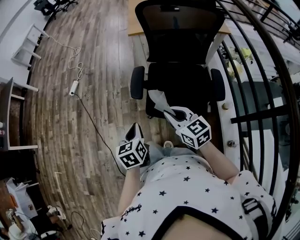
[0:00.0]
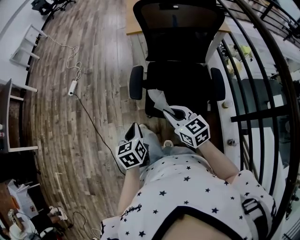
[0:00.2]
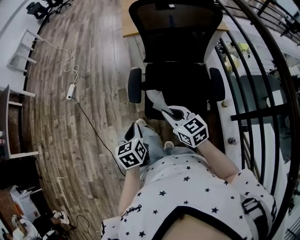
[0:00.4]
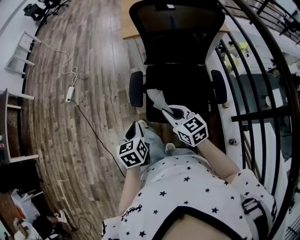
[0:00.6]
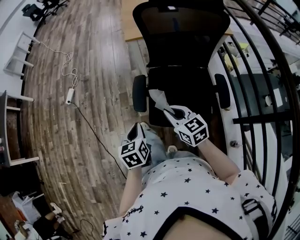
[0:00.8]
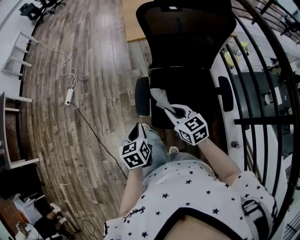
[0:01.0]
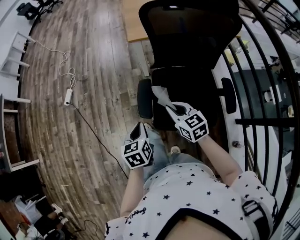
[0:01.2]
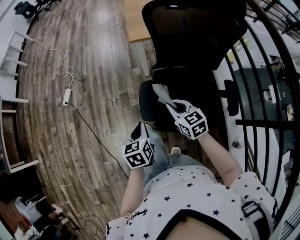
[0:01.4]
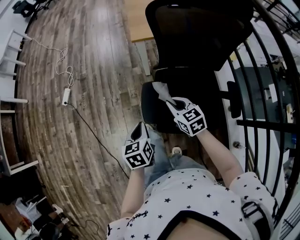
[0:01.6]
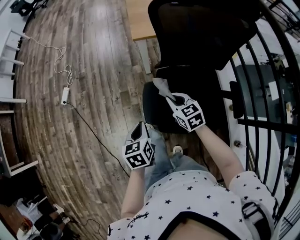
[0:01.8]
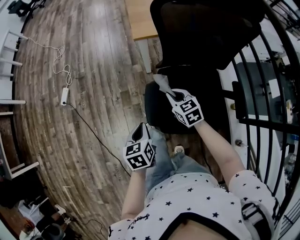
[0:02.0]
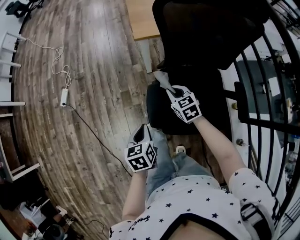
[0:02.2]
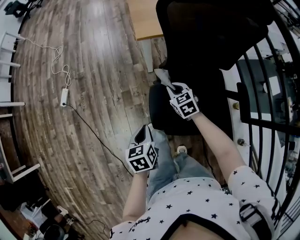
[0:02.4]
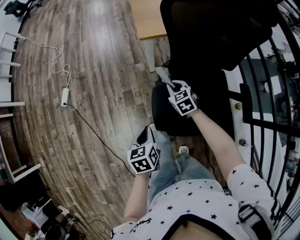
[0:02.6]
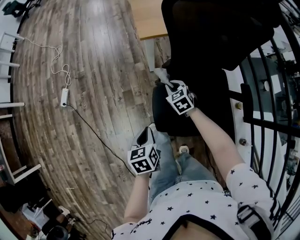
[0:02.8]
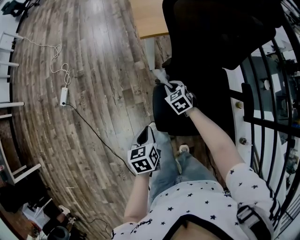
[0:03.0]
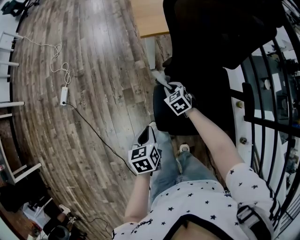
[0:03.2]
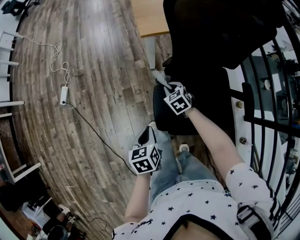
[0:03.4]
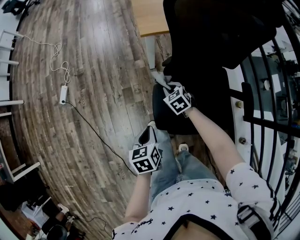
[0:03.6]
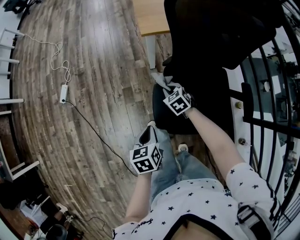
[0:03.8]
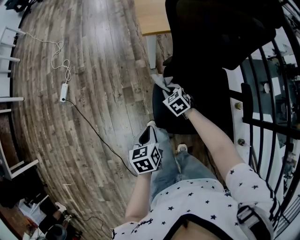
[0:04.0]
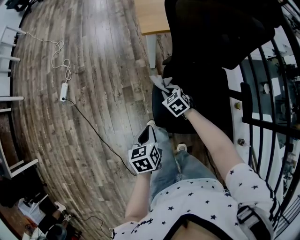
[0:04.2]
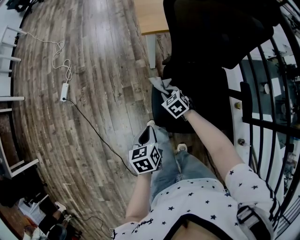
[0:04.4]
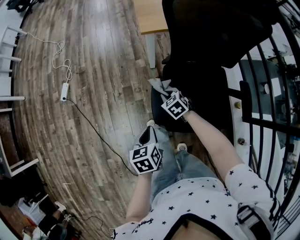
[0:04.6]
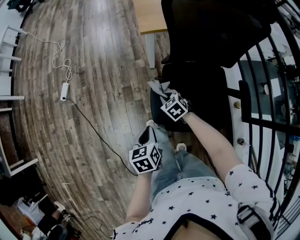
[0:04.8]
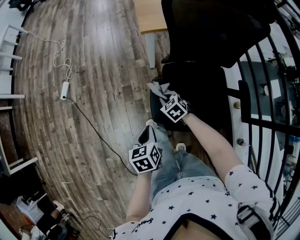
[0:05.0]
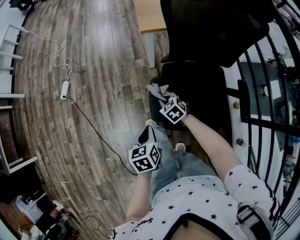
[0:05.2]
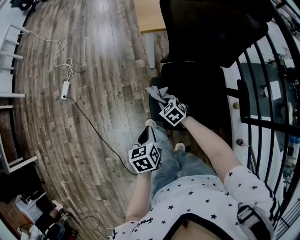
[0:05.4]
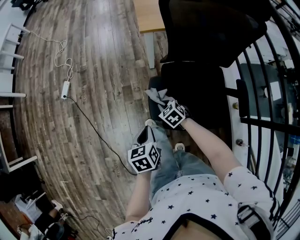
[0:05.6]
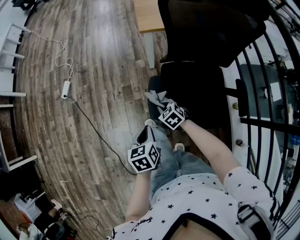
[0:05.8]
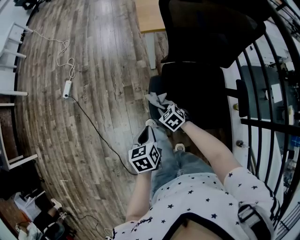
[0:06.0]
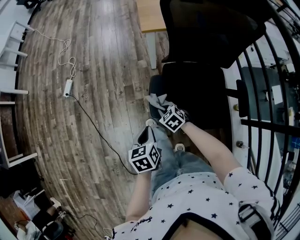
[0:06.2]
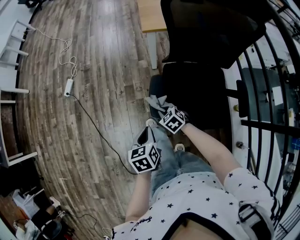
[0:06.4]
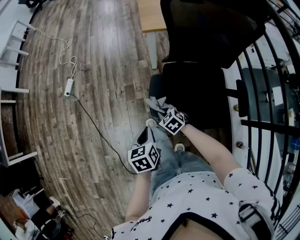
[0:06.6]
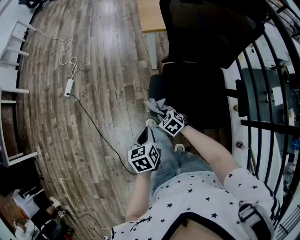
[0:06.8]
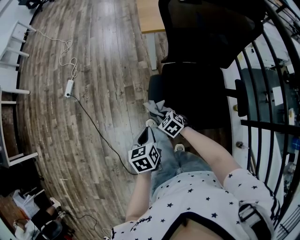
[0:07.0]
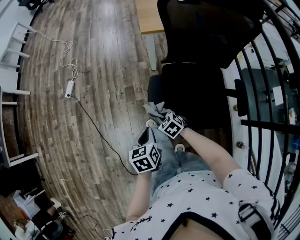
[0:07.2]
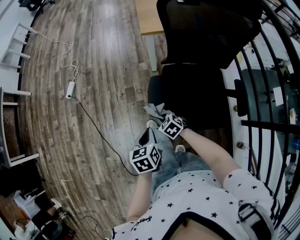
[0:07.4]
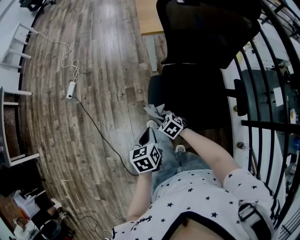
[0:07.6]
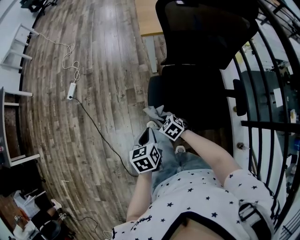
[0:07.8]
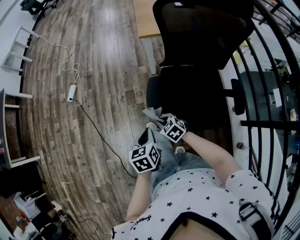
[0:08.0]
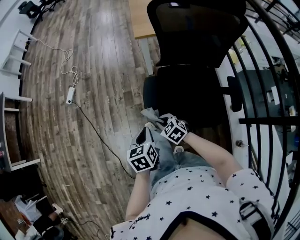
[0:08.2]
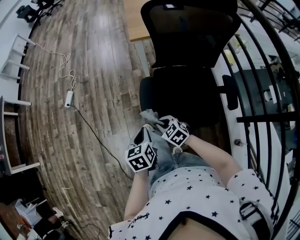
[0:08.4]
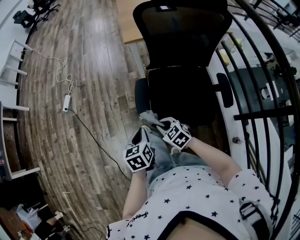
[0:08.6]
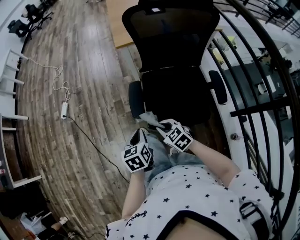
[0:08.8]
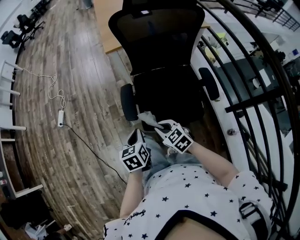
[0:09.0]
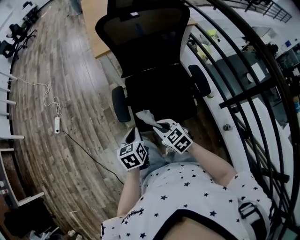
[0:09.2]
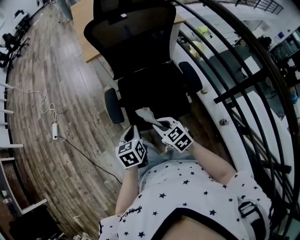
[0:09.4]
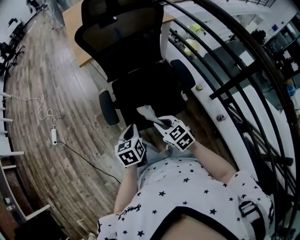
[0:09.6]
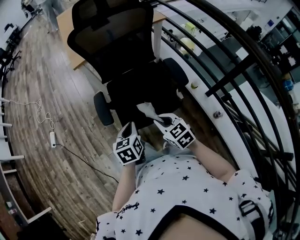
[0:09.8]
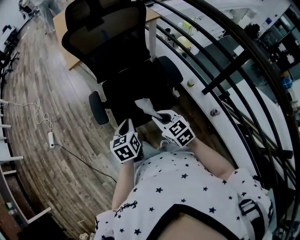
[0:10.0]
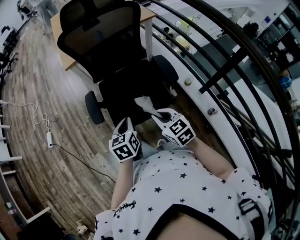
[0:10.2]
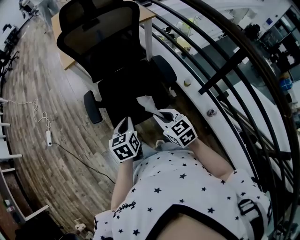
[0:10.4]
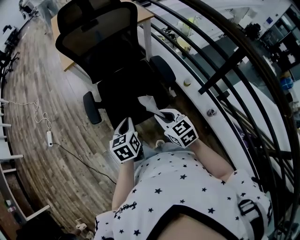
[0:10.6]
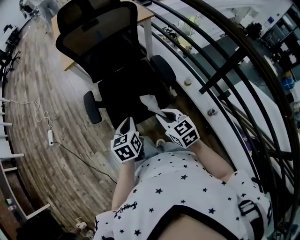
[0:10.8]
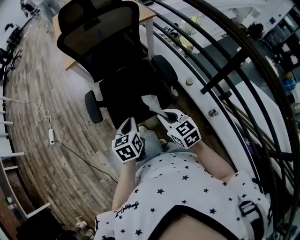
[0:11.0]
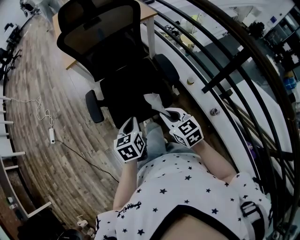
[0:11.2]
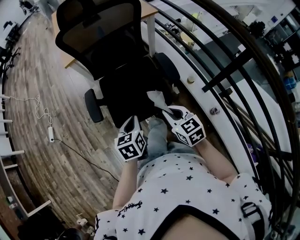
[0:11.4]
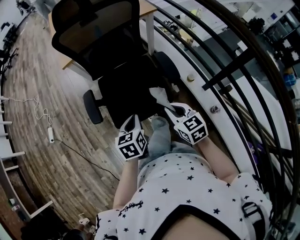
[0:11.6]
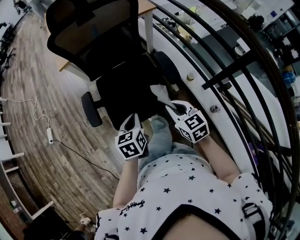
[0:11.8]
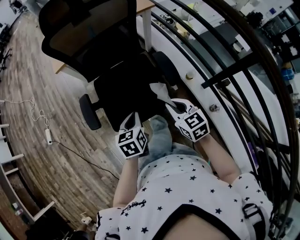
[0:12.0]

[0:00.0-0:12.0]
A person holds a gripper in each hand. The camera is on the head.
0:00.0 to 0:01.6: The right gripper heads forward and downward, covering roughly 25 cm. Meanwhile the left gripper heads forward, covering roughly 20 cm.
0:01.6 to 0:03.0: The left gripper moves downward, approximately 5 cm; the right gripper heads downward and forward, covering roughly 20 cm, and changes its angle by approximately 20 degrees.
0:03.0 to 0:04.4: The right gripper goes roughly 5 cm backward.
0:04.4 to 0:06.0: The right gripper travels backward by some 10 cm.
0:06.0 to 0:07.6: The right gripper travels backward by approximately 5 cm.
0:07.6 to 0:09.0: The right gripper shifts approximately 20 cm upward, backward and to the right, and turns by roughly 20 degrees. The left gripper heads backward and to the right, covering roughly 5 cm.
0:09.0 to 0:10.4: The right gripper heads to the right and backward, covering approximately 20 cm, and turns by approximately 20 degrees, while the left gripper moves to the right, some 20 cm.
0:10.4 to 0:12.0: Both grippers move to the right and forward, about 10 cm.

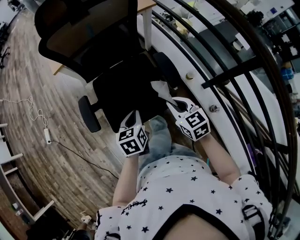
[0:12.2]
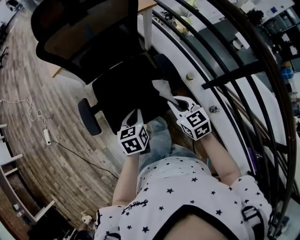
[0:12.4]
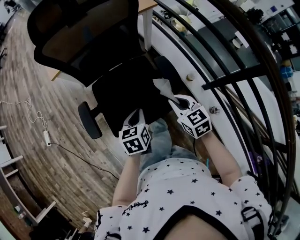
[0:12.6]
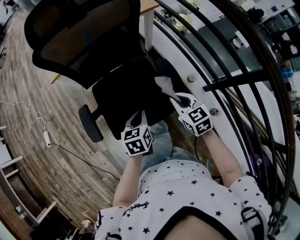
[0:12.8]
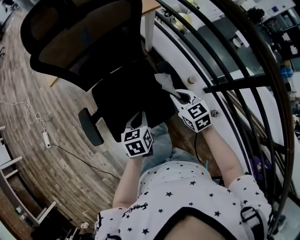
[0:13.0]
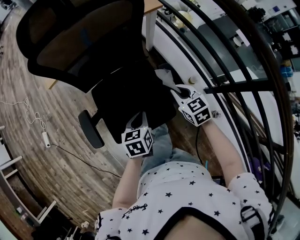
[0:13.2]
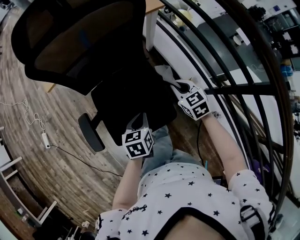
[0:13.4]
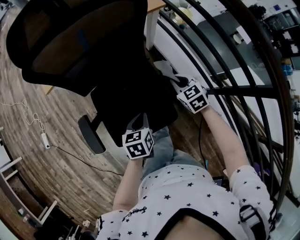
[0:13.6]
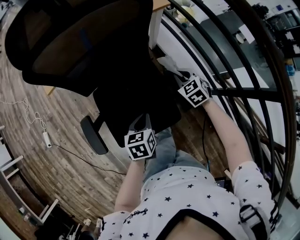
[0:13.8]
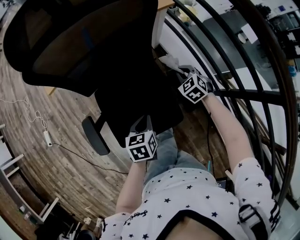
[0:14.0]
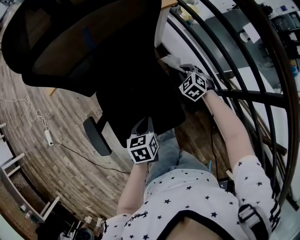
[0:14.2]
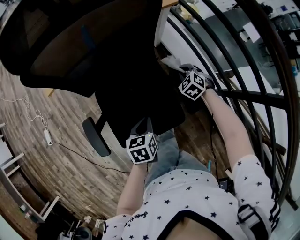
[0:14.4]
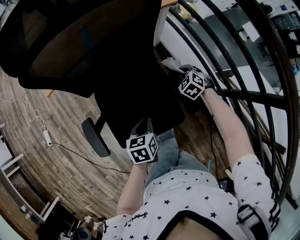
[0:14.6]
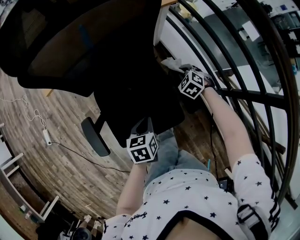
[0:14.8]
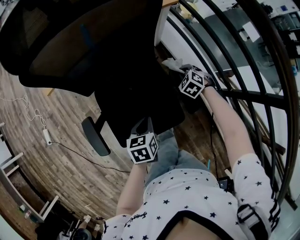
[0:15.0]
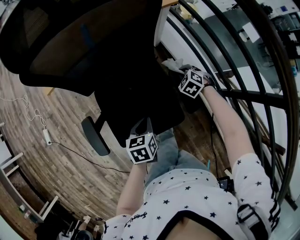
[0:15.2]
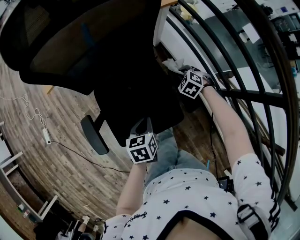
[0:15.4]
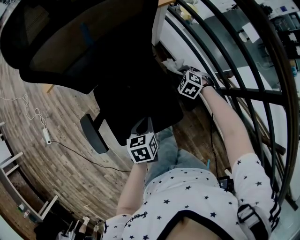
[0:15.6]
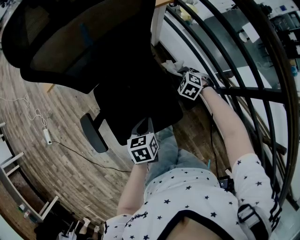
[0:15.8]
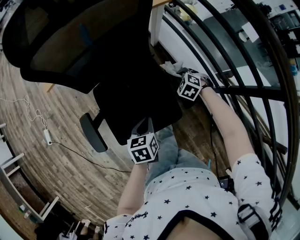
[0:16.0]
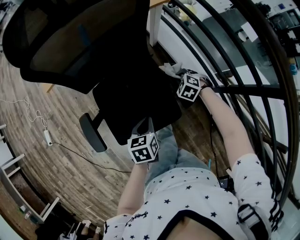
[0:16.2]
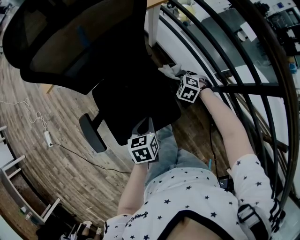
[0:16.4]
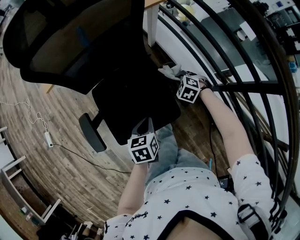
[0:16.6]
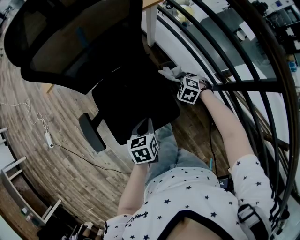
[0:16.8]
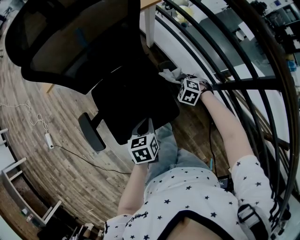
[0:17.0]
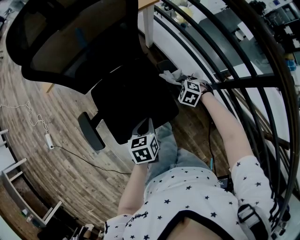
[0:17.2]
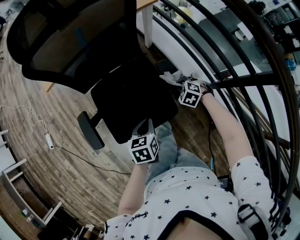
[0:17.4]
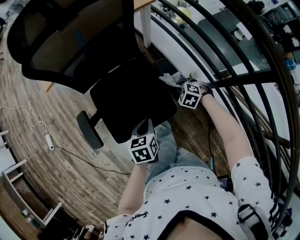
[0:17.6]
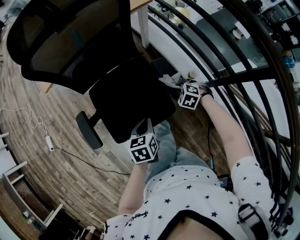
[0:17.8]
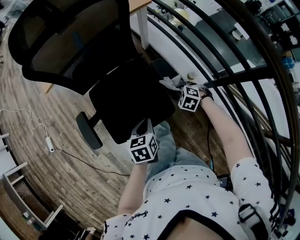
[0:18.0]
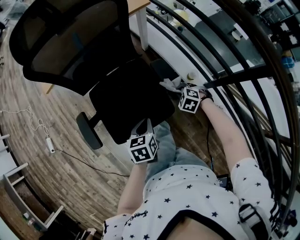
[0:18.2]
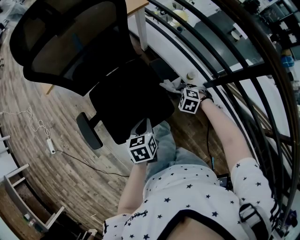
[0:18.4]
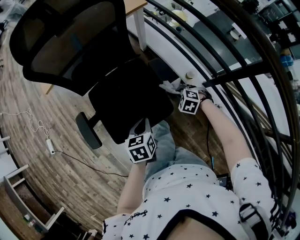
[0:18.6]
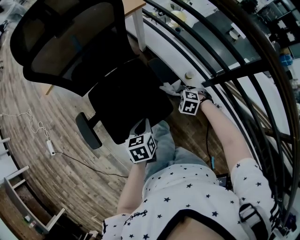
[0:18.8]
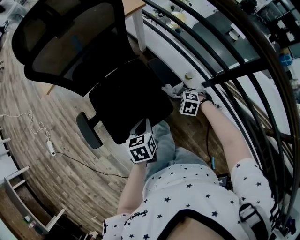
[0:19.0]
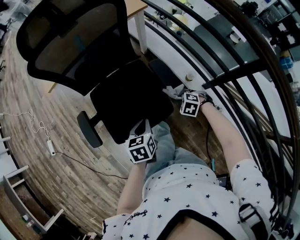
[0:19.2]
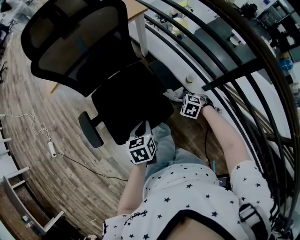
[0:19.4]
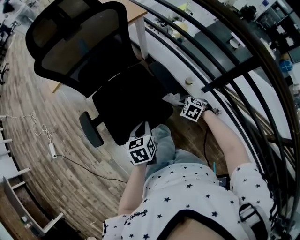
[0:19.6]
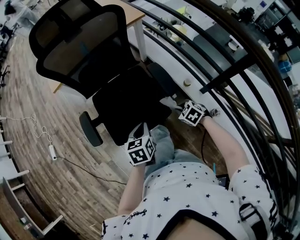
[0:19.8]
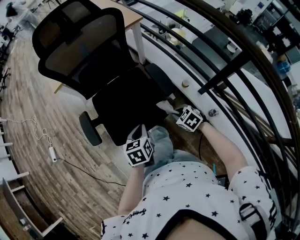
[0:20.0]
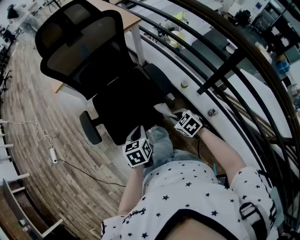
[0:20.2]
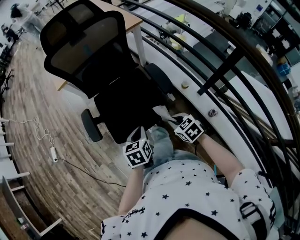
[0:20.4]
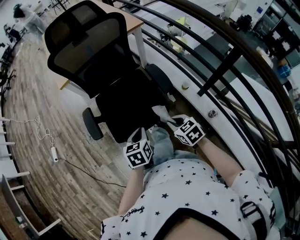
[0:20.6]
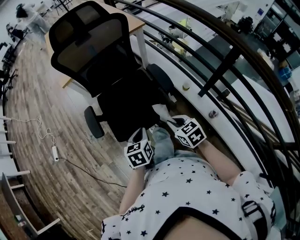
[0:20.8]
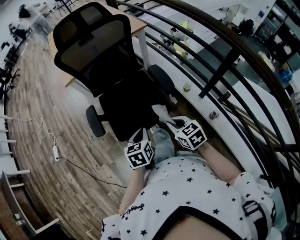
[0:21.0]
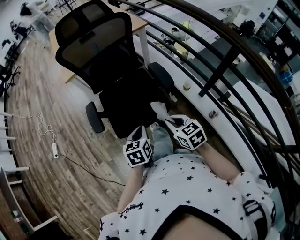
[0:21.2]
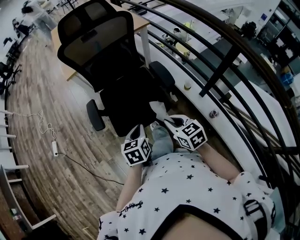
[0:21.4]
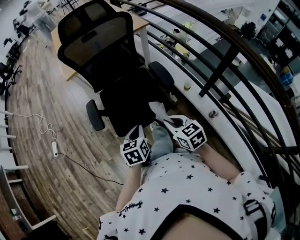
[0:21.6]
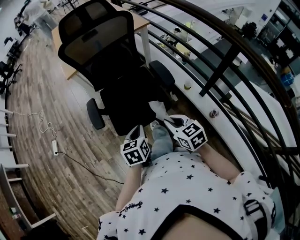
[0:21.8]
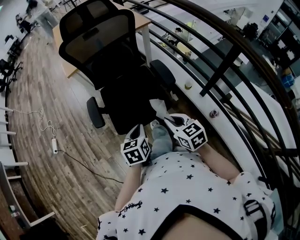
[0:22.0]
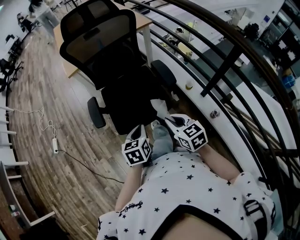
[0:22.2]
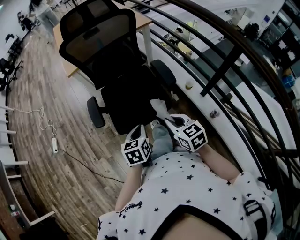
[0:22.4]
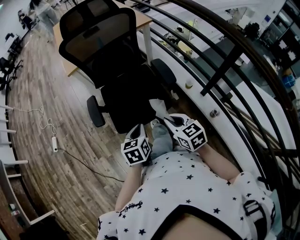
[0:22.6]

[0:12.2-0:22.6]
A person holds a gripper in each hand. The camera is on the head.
0:12.2 to 0:13.6: The left gripper heads forward, covering approximately 10 cm. The right gripper goes about 25 cm forward.
0:13.6 to 0:15.2: The right gripper goes approximately 15 cm downward and forward, and swivels about 30 degrees.
0:15.2 to 0:16.6: The right gripper moves backward, roughly 5 cm.
0:16.6 to 0:18.2: The right gripper goes about 10 cm backward.
0:18.2 to 0:19.6: The right gripper ends up roughly 10 cm from where it was.
0:19.6 to 0:21.2: The right gripper is displaced upward, backward and to the left by about 25 cm, and tilts its fingers approximately 30 degrees upward. Meanwhile the left gripper goes some 15 cm backward and to the left.
0:21.2 to 0:22.6: The grippers move only a little.

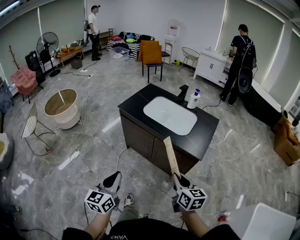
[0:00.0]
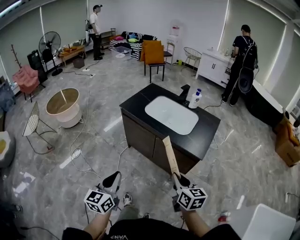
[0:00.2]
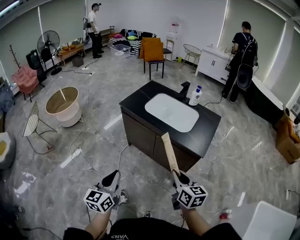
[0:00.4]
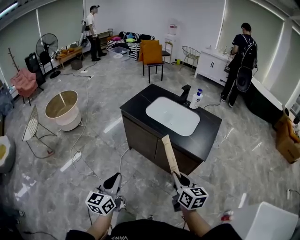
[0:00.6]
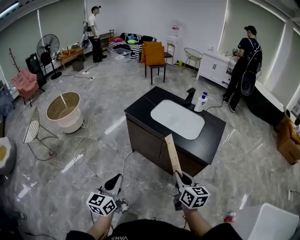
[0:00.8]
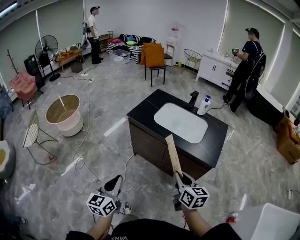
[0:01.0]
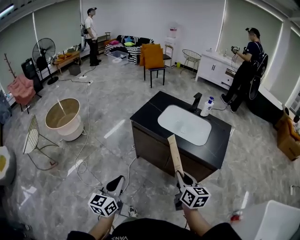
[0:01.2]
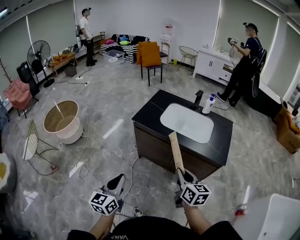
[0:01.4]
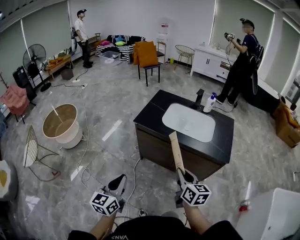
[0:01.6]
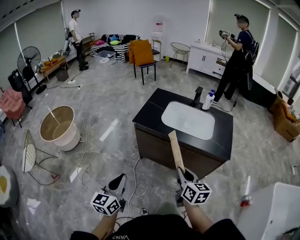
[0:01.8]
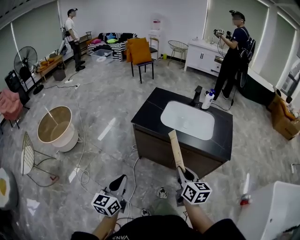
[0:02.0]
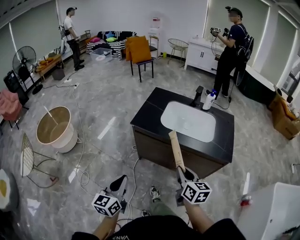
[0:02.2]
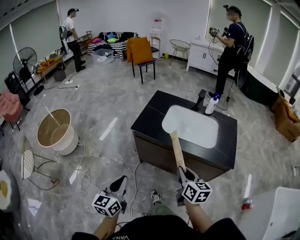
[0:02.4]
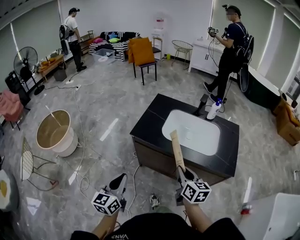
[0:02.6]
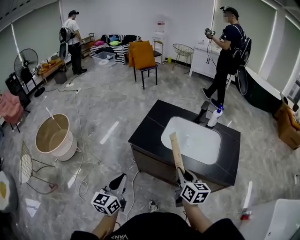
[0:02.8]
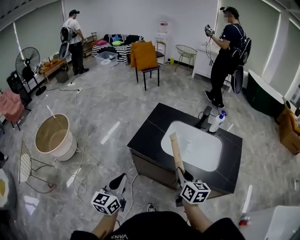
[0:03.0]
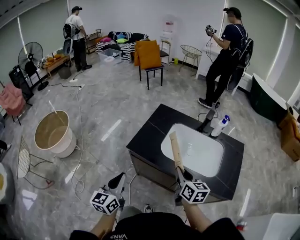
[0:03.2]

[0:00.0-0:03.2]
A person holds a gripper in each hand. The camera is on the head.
0:00.0 to 0:01.6: Both grippers travel together to the left and forward, some 25 cm.
0:01.6 to 0:03.2: The two grippers go roughly 25 cm forward.
